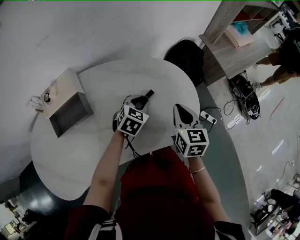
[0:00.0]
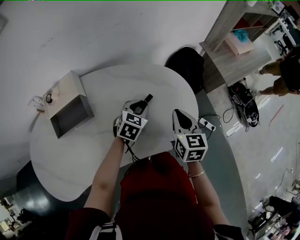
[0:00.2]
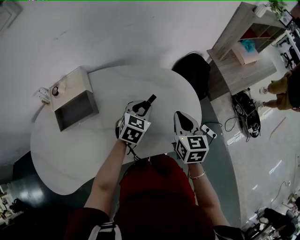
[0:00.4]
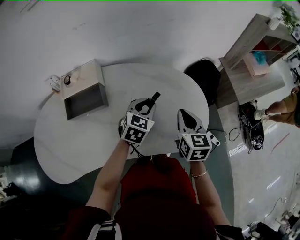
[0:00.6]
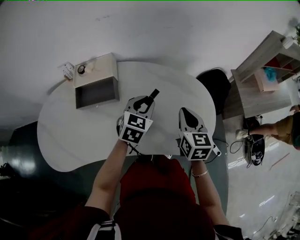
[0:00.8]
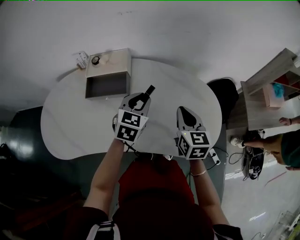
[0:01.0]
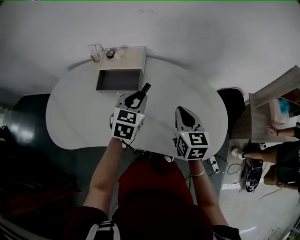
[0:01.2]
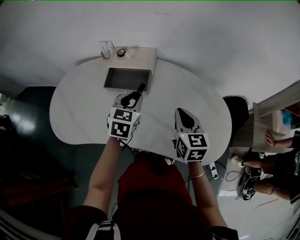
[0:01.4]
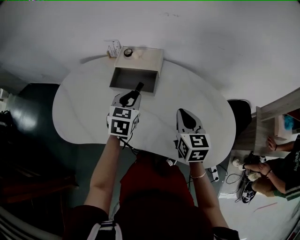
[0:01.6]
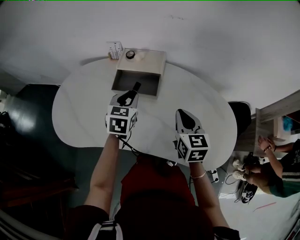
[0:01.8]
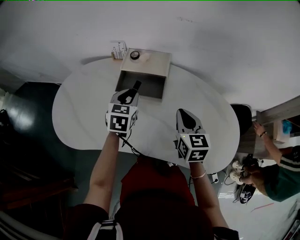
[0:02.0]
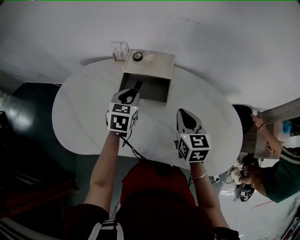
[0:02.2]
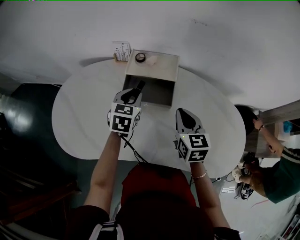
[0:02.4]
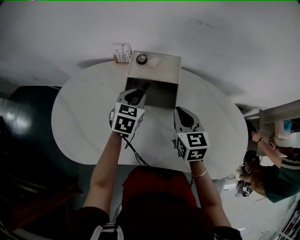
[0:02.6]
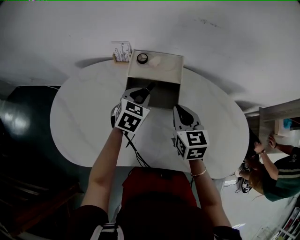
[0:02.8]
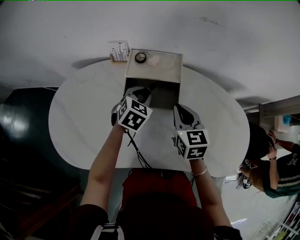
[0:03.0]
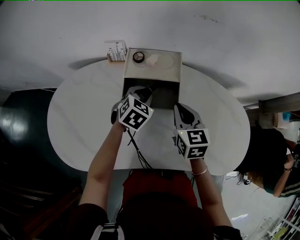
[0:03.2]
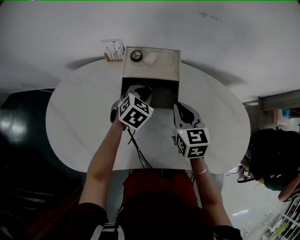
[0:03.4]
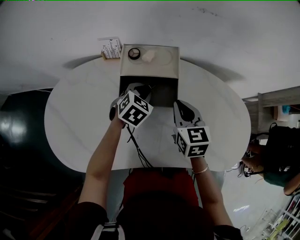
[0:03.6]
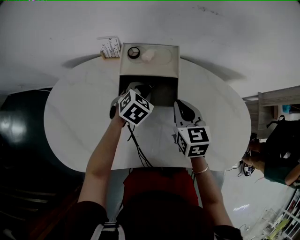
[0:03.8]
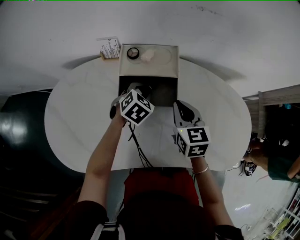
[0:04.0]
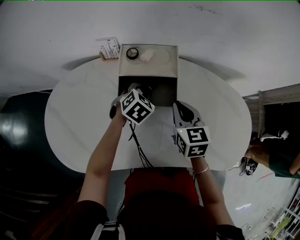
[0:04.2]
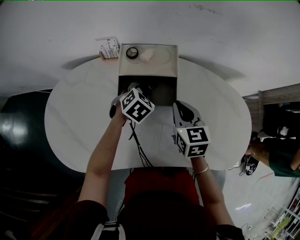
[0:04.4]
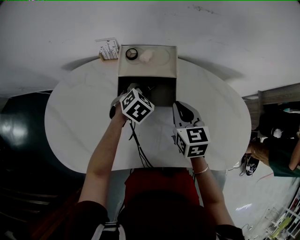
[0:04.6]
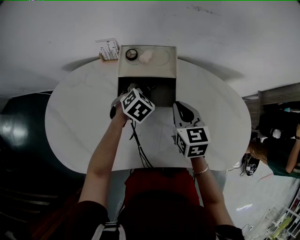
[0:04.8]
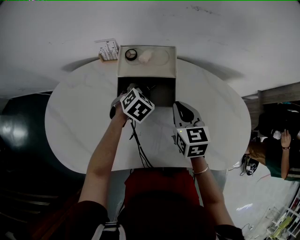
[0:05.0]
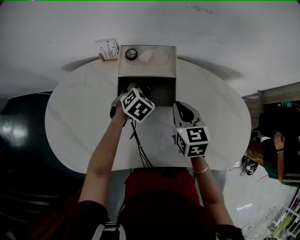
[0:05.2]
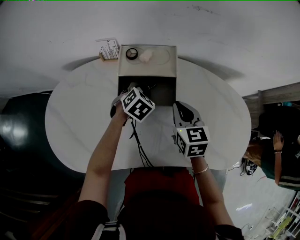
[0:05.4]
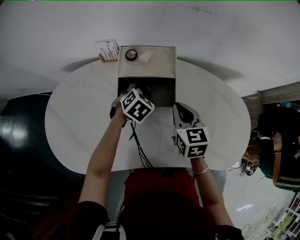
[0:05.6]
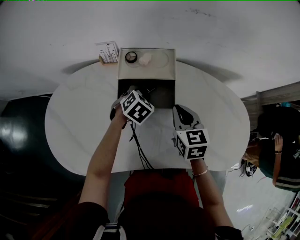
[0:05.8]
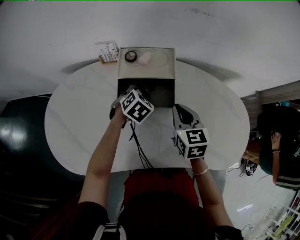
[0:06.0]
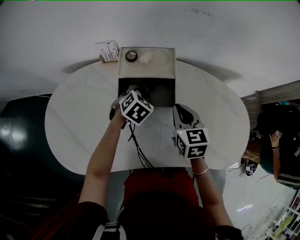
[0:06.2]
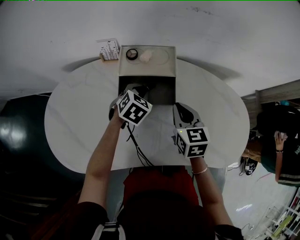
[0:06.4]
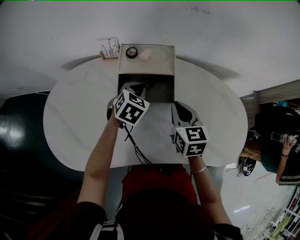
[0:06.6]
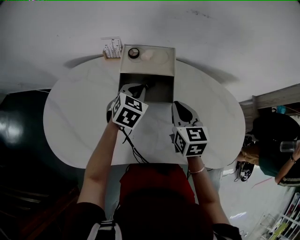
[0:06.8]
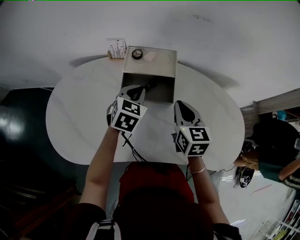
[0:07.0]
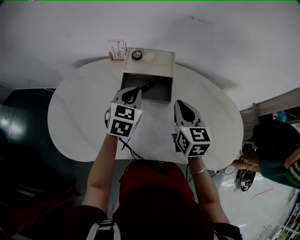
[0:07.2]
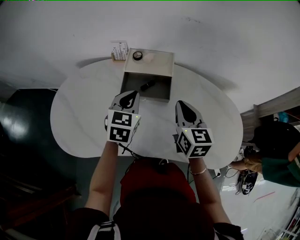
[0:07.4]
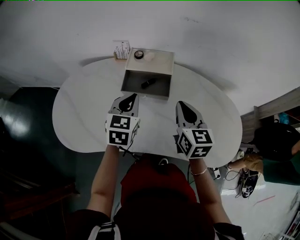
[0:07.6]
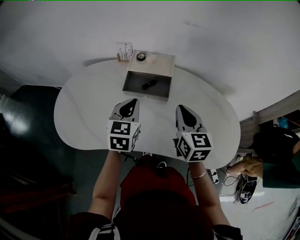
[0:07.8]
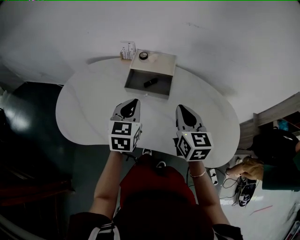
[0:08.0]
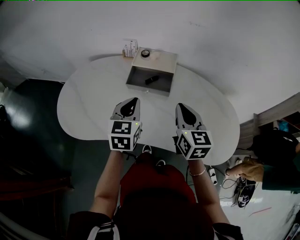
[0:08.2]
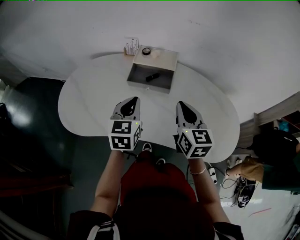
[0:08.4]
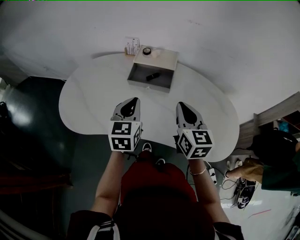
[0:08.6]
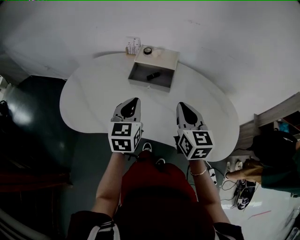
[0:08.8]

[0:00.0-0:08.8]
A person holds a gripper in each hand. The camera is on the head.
0:00.0 to 0:01.4: The right gripper moves about 20 cm, and turns by approximately 40 degrees, while the left gripper moves roughly 30 cm, and rotates roughly 50 degrees.
0:01.4 to 0:03.0: The right gripper travels to the left and forward by approximately 20 cm. Meanwhile the left gripper heads forward, to the left and downward, covering some 15 cm, and changes its angle by approximately 20 degrees.
0:03.0 to 0:04.4: The left gripper is displaced downward by approximately 5 cm.
0:04.4 to 0:05.8: Neither gripper changes place.
0:05.8 to 0:07.4: The right gripper shifts about 5 cm upward; the left gripper travels upward and backward by about 20 cm, tilts its fingers some 30 degrees upward, and closes up.
0:07.4 to 0:08.8: The two grippers go roughly 10 cm backward.

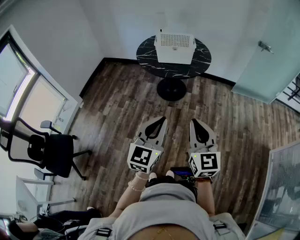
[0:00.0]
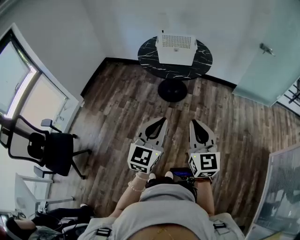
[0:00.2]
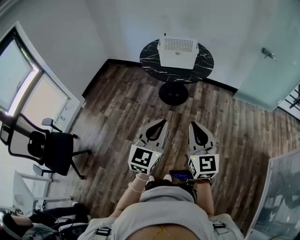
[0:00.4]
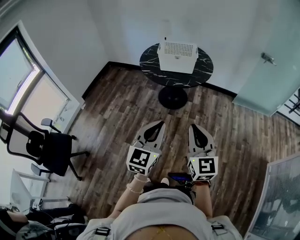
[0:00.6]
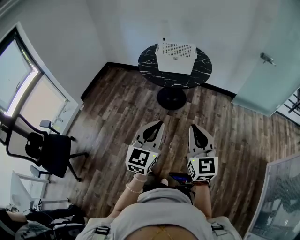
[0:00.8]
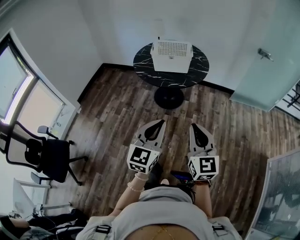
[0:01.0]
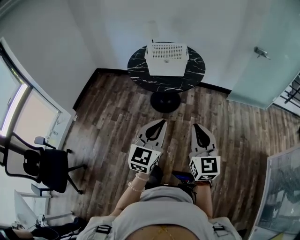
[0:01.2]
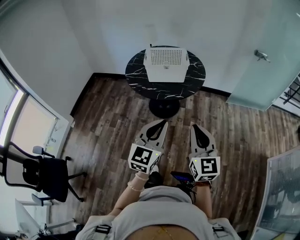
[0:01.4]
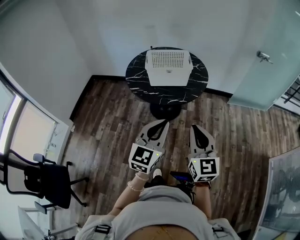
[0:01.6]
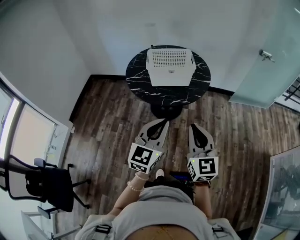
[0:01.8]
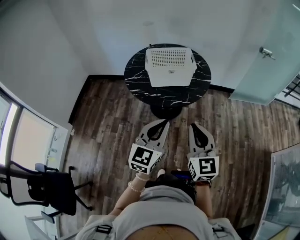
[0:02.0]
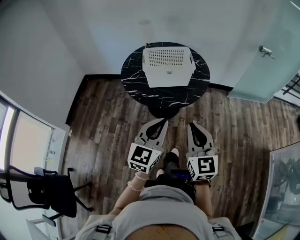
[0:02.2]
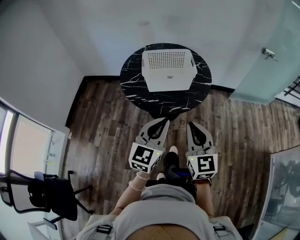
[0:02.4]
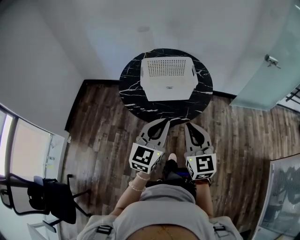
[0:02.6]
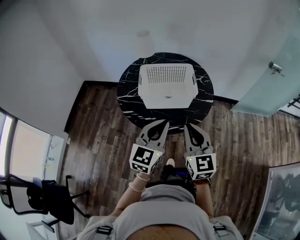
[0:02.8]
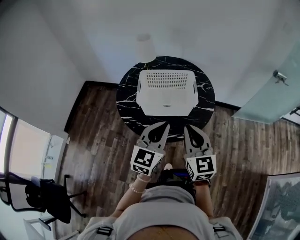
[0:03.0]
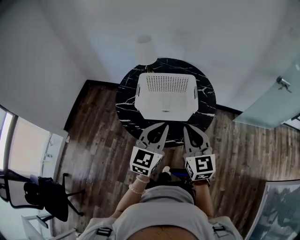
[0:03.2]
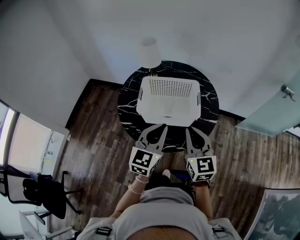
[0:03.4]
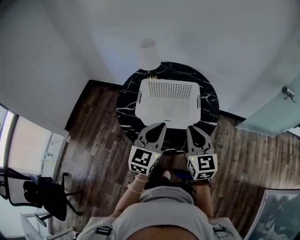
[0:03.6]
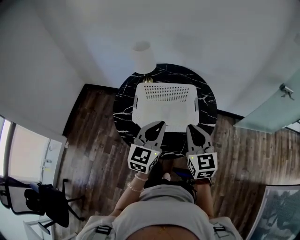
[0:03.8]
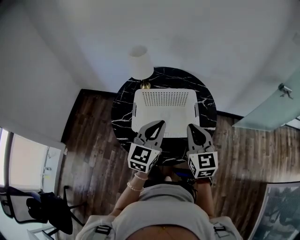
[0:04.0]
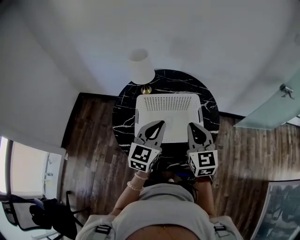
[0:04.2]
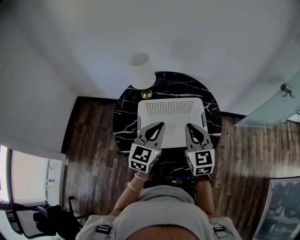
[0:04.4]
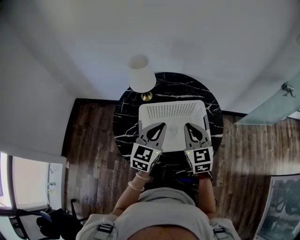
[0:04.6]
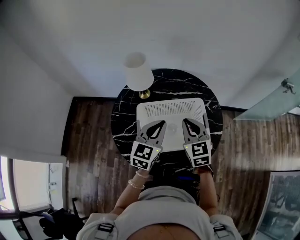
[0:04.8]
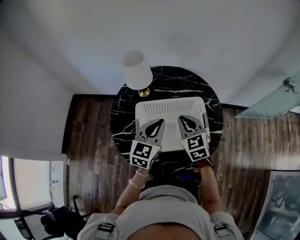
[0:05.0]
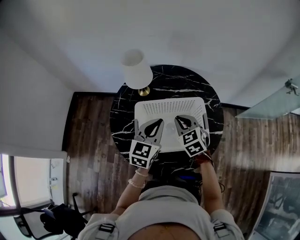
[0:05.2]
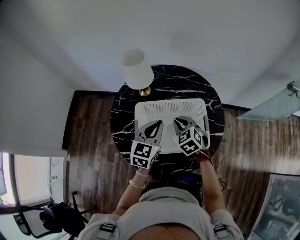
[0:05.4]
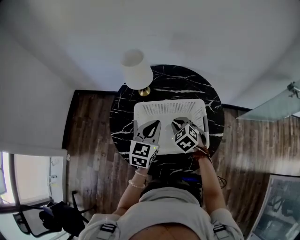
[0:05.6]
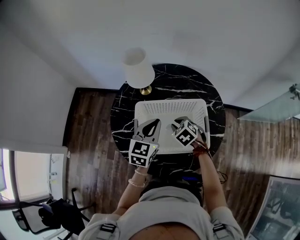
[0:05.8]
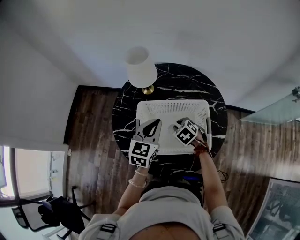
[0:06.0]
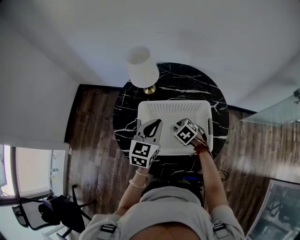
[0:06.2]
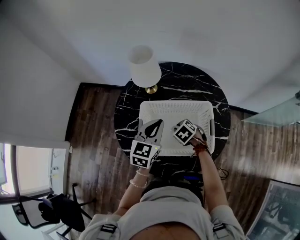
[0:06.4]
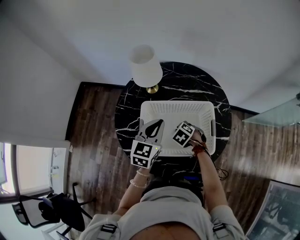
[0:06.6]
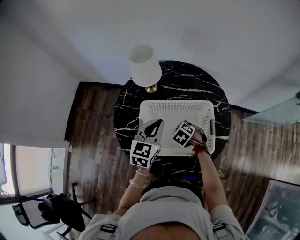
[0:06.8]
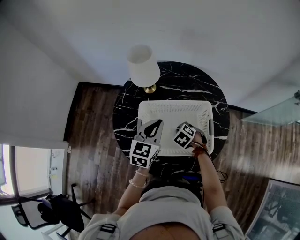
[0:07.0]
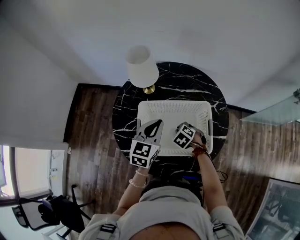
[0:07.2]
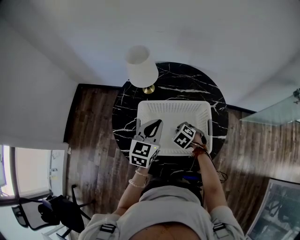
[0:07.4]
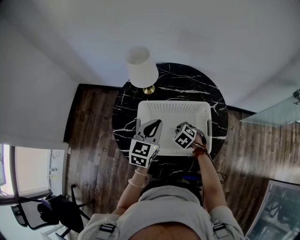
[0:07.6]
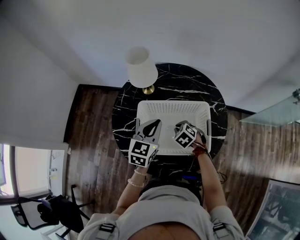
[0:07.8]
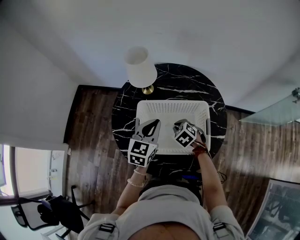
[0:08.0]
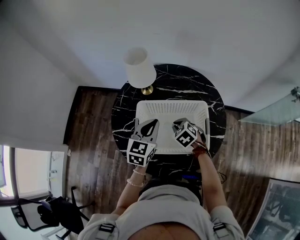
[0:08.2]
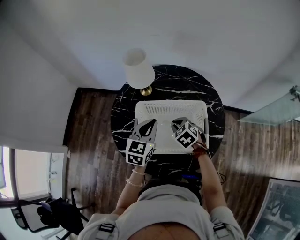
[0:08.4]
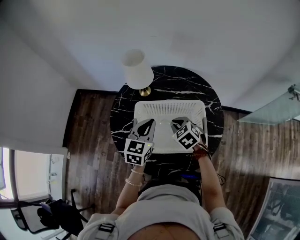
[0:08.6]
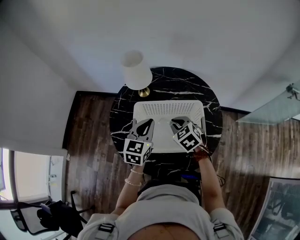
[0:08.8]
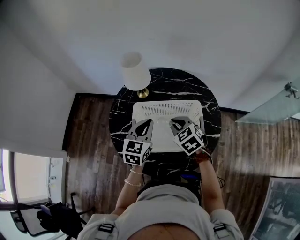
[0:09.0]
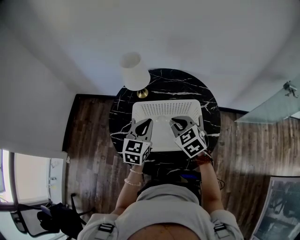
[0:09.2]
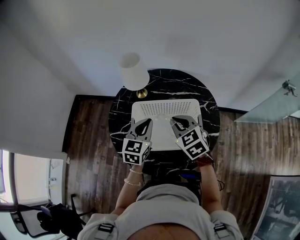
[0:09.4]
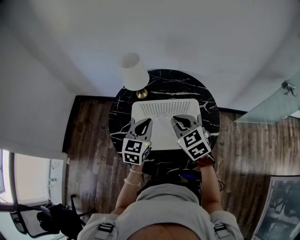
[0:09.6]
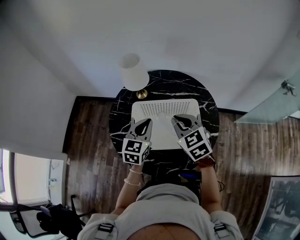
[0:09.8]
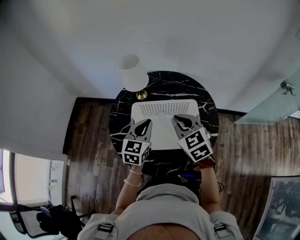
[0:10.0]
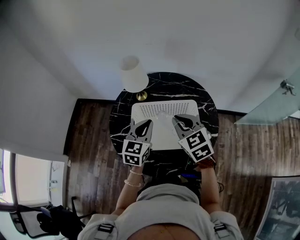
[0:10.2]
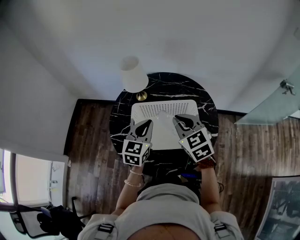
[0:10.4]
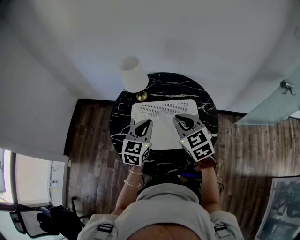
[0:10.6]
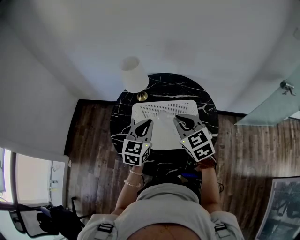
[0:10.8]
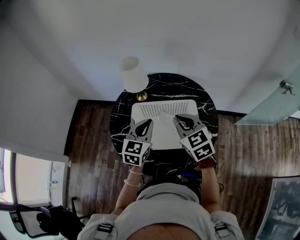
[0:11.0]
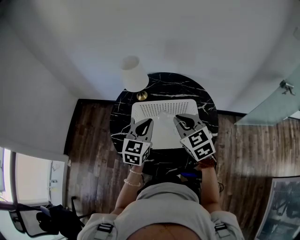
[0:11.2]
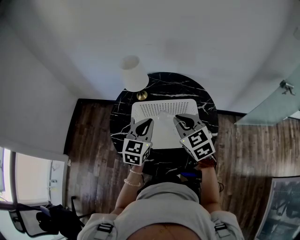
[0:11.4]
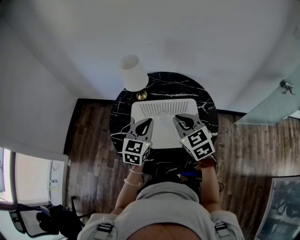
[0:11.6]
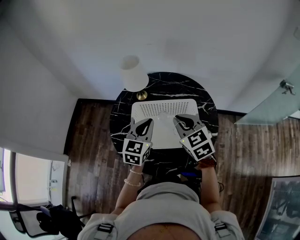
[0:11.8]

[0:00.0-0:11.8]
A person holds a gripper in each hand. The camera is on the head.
0:00.0 to 0:01.4: Both grippers travel together forward, roughly 15 cm.
0:01.4 to 0:03.0: Both grippers travel together forward, roughly 40 cm.
0:03.0 to 0:04.4: Both grippers travel together forward, approximately 25 cm.
0:04.4 to 0:06.0: The right gripper is displaced downward and forward by approximately 25 cm, and tilts its fingers roughly 50 degrees downward. The left gripper is displaced forward and downward by some 10 cm.
0:06.0 to 0:07.4: There are only small adjustments of the grippers.
0:07.4 to 0:08.8: The right gripper shifts some 15 cm upward, and rotates roughly 20 degrees.
0:08.8 to 0:10.4: The right gripper is displaced upward by some 15 cm, and changes its angle by approximately 20 degrees.
0:10.4 to 0:11.8: Both grippers stay about where they are.

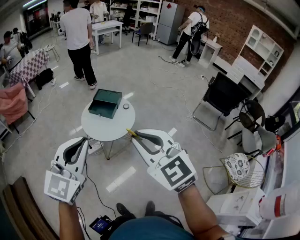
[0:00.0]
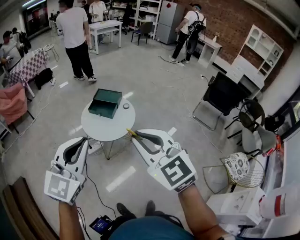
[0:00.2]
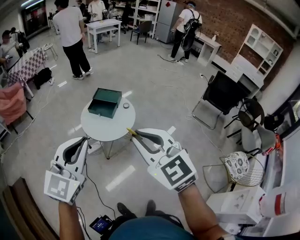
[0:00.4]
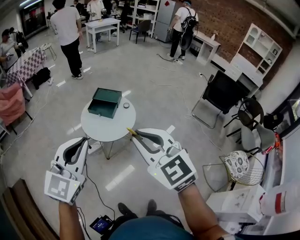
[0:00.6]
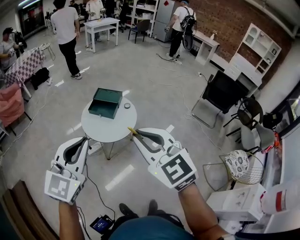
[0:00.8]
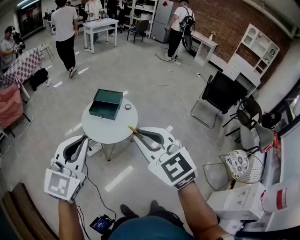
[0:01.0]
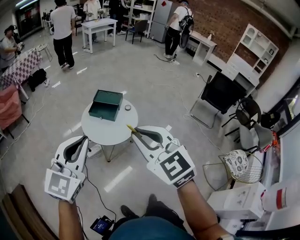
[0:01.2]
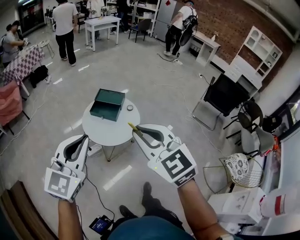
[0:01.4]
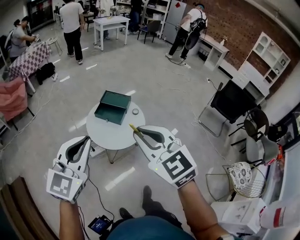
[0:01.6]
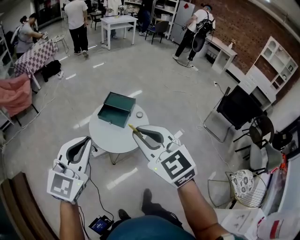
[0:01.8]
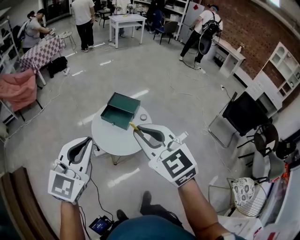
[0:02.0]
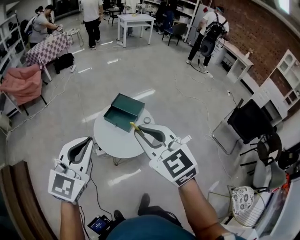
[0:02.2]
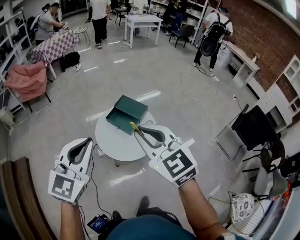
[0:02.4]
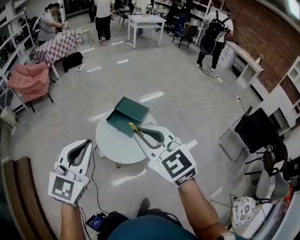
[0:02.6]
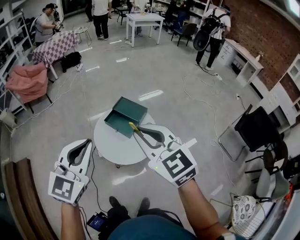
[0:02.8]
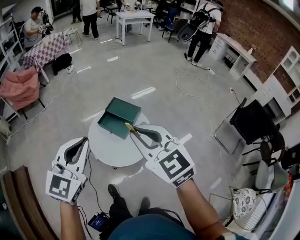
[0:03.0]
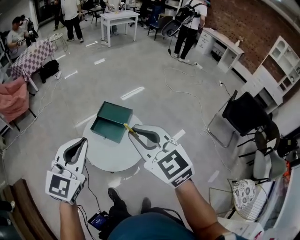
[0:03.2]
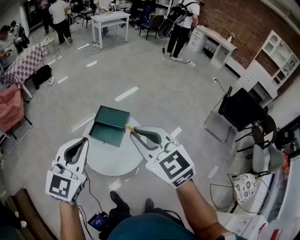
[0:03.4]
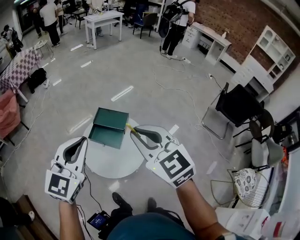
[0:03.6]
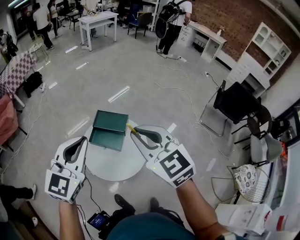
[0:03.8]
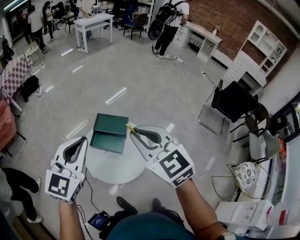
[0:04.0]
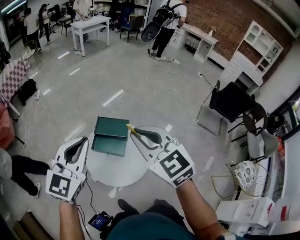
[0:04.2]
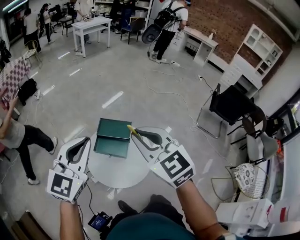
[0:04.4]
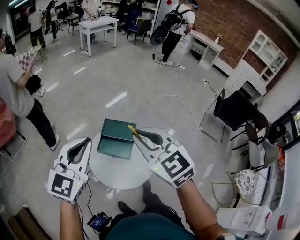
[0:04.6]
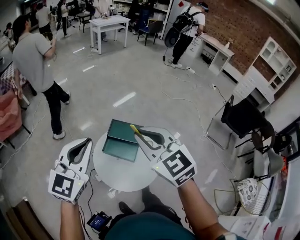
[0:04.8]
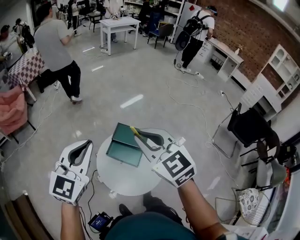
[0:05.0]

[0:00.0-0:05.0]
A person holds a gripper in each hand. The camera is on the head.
0:00.0 to 0:01.6: The grippers both shift forward and to the left by some 20 cm.
0:01.6 to 0:03.4: Both grippers travel together forward, about 30 cm.
0:03.4 to 0:05.0: The two grippers go approximately 25 cm forward and to the left.
